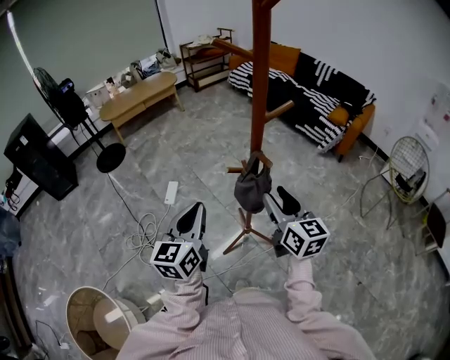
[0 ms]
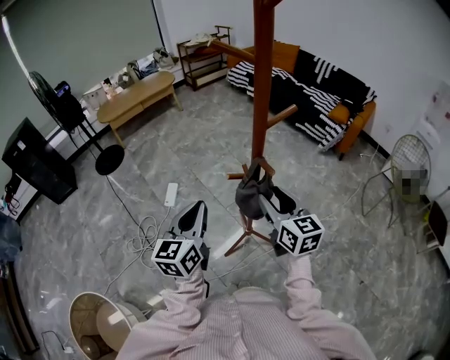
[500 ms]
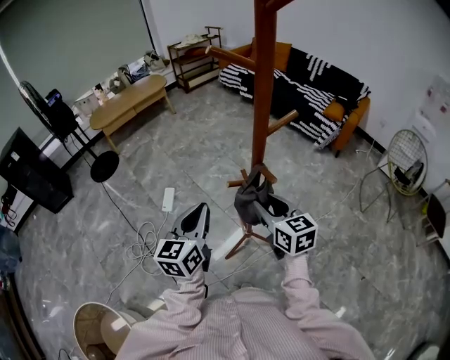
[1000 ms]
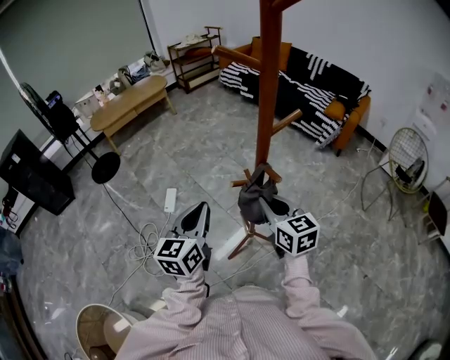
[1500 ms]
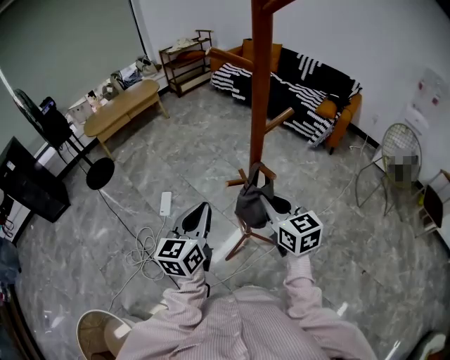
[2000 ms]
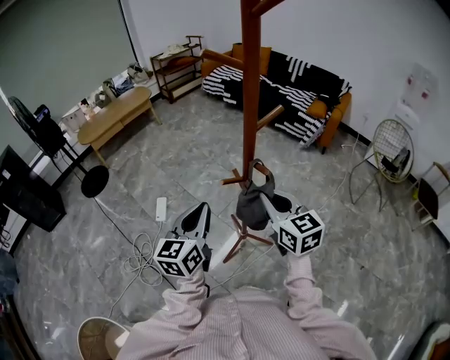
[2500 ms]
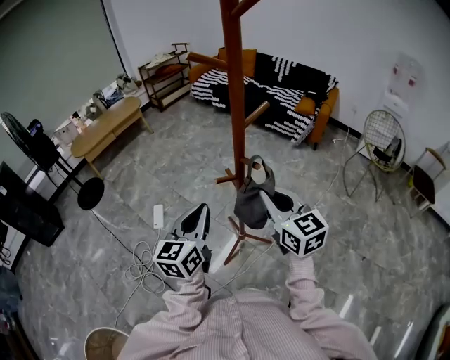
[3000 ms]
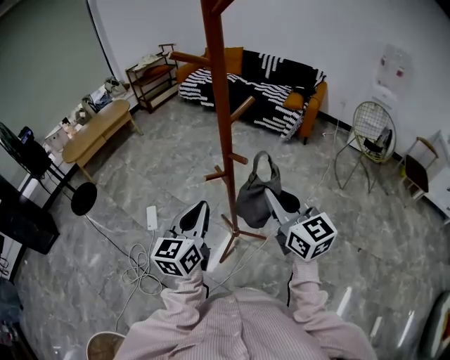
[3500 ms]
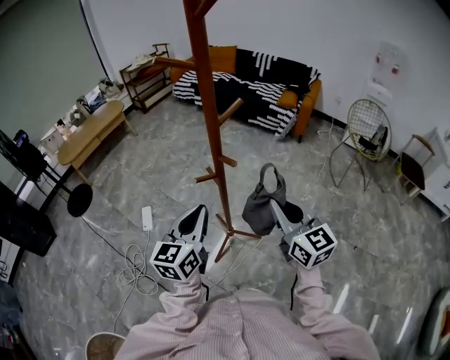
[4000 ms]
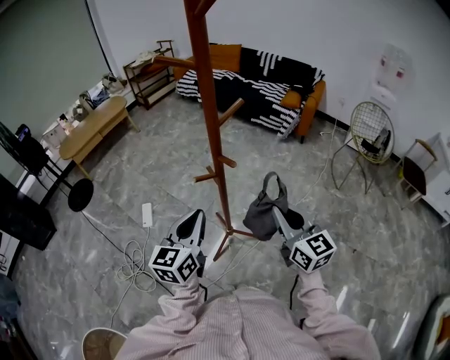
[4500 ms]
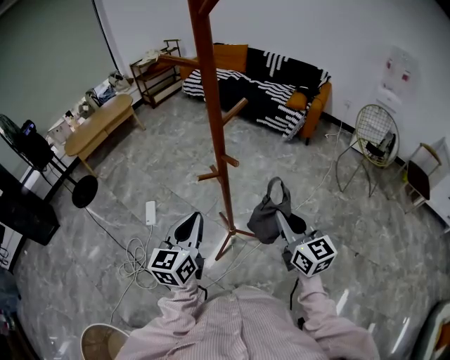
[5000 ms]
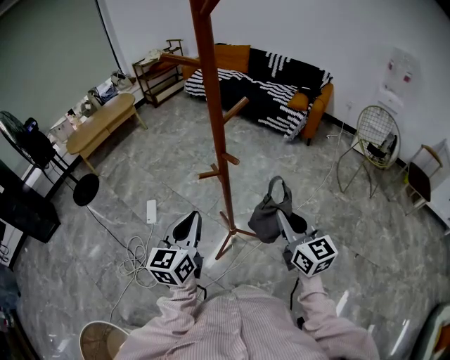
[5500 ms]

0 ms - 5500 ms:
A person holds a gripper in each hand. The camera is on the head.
0 ms - 2000 ms: The left gripper travels forward by roughly 5 cm. The right gripper changes place by roughly 5 cm, and closes up.
2000 ms - 3500 ms: The left gripper shifts by about 5 cm. The right gripper is displaced backward, upward and to the right by some 10 cm.
3500 ms - 5500 ms: The right gripper is displaced downward and to the right by about 10 cm.

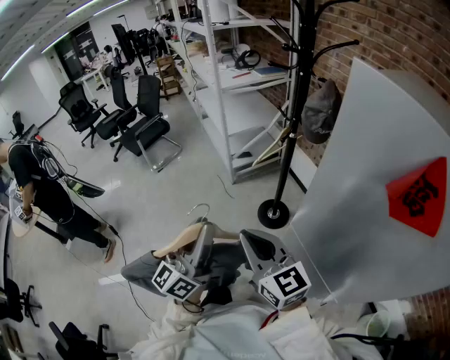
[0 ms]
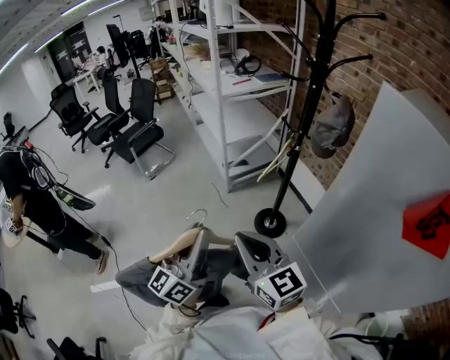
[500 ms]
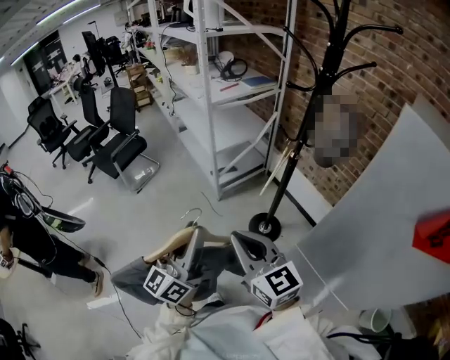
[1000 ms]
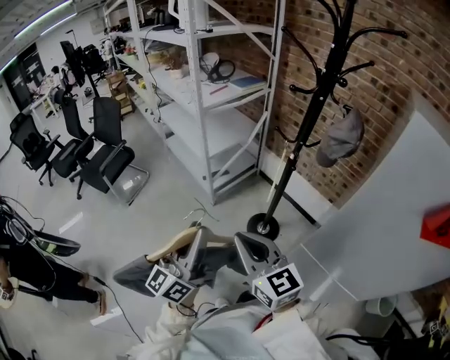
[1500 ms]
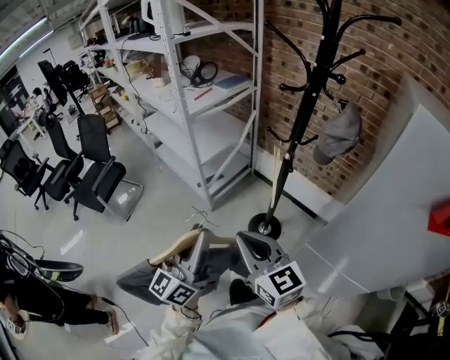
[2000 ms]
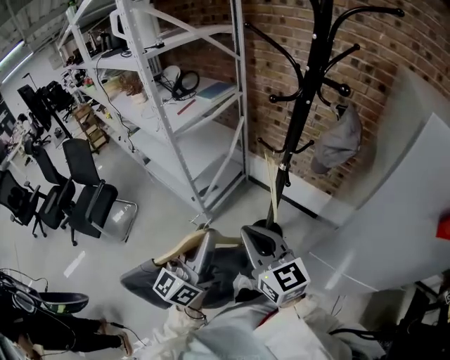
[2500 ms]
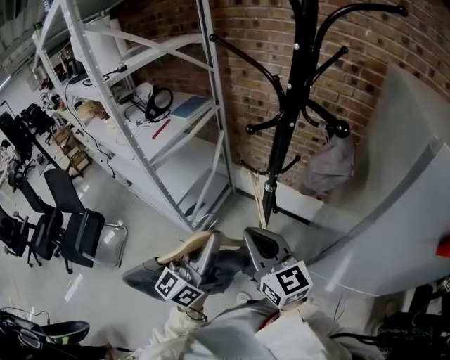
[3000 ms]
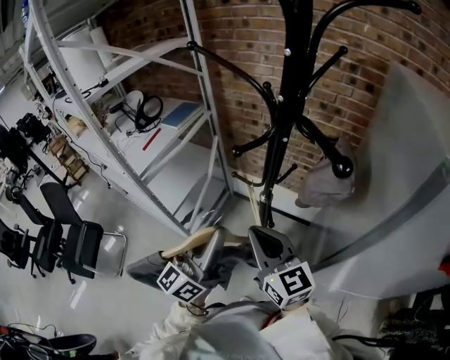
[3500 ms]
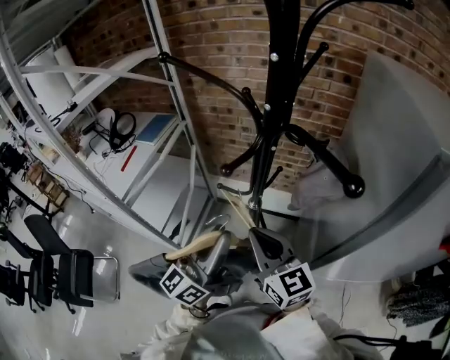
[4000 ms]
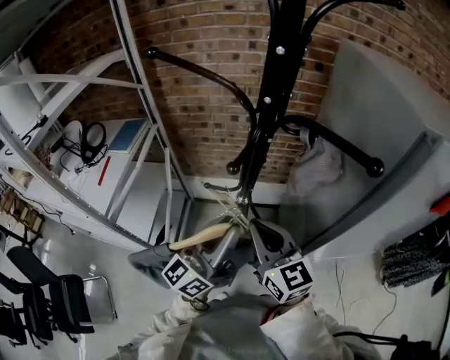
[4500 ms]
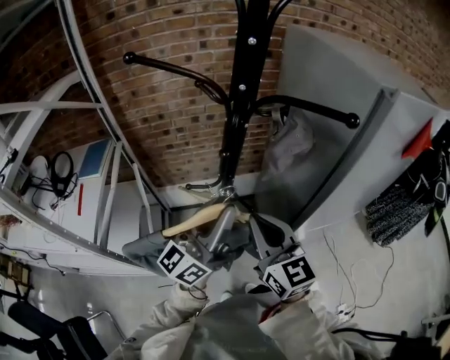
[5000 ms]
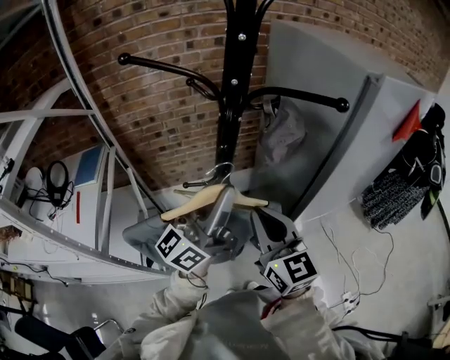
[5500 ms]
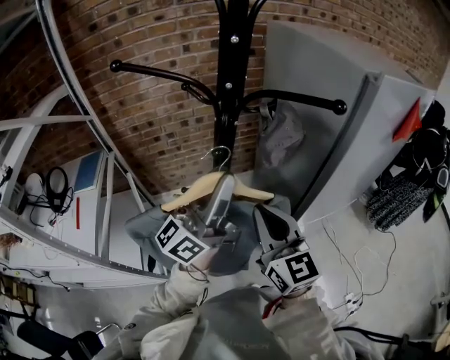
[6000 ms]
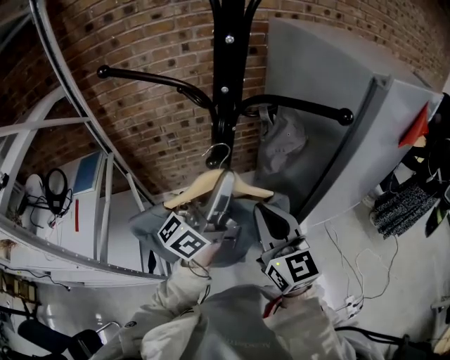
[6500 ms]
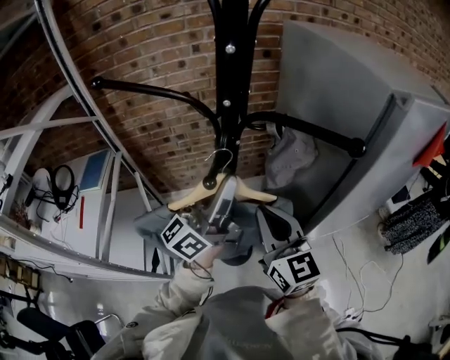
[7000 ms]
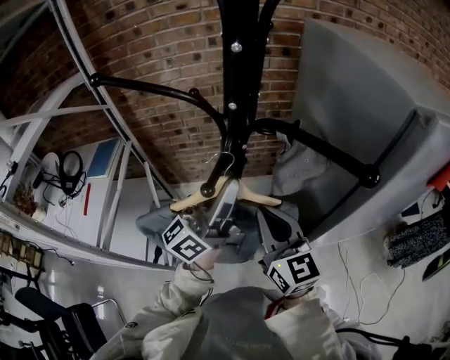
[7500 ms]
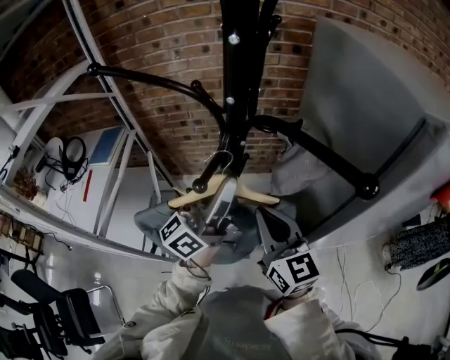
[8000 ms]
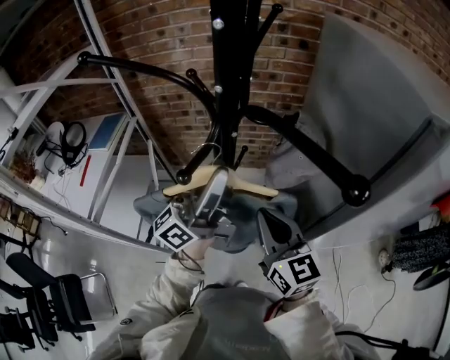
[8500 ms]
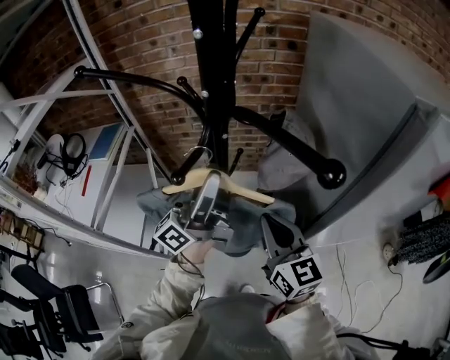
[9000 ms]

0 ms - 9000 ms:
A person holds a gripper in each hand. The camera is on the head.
0 ms - 2000 ms: Both grippers move forward and to the left, some 30 cm. The right gripper swivels roughly 20 degrees.
2000 ms - 4500 ms: The right gripper changes place by roughly 35 cm, and turns by approximately 40 degrees, while the left gripper moves approximately 35 cm, and swivels roughly 50 degrees.
4500 ms - 7000 ms: The right gripper ends up roughly 5 cm from where it was, and changes its angle by about 20 degrees; the left gripper travels forward and upward by approximately 10 cm, and swivels roughly 20 degrees.
7000 ms - 9000 ms: The right gripper goes some 5 cm downward.

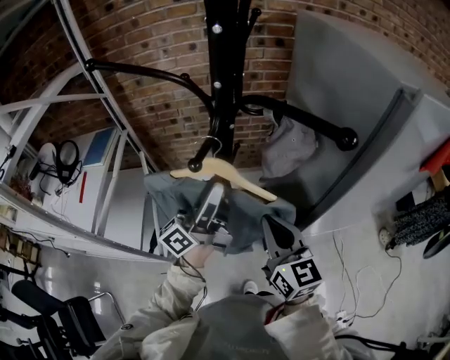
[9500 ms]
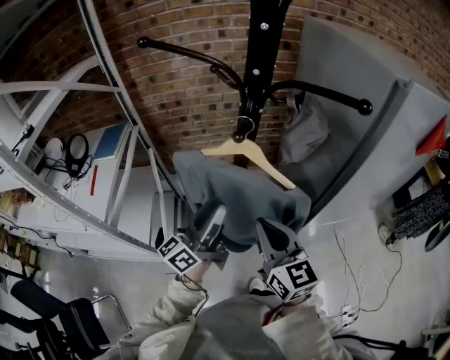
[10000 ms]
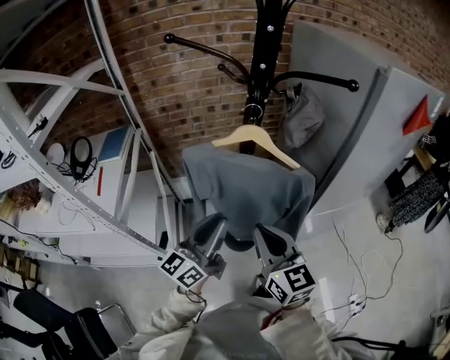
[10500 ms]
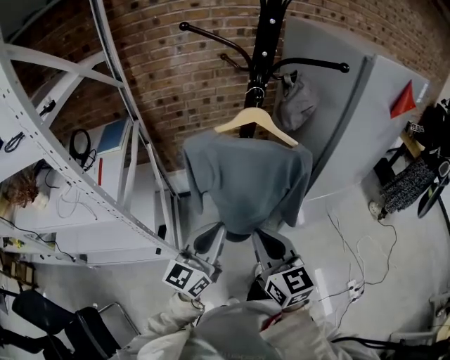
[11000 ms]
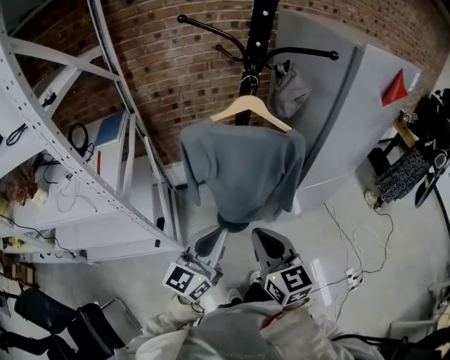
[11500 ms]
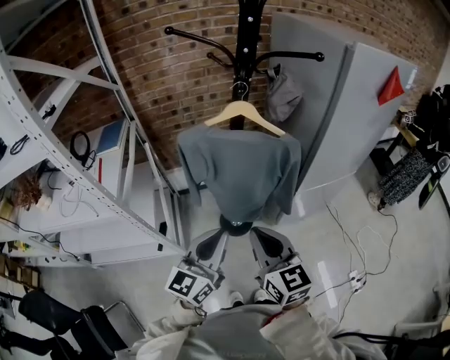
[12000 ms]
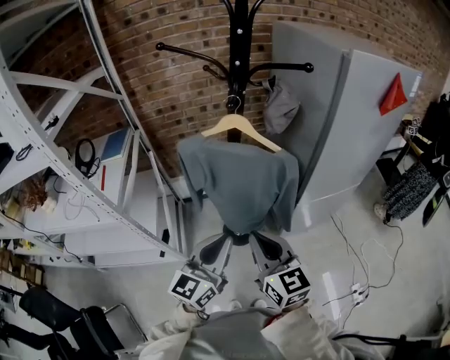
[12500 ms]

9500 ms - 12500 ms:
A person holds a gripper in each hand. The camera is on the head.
9500 ms - 11000 ms: The right gripper goes approximately 25 cm backward and to the left. The left gripper goes about 25 cm backward, changes its angle by about 40 degrees, and closes up.
11000 ms - 12500 ms: The right gripper ends up some 5 cm from where it was. The left gripper travels to the right by roughly 5 cm.

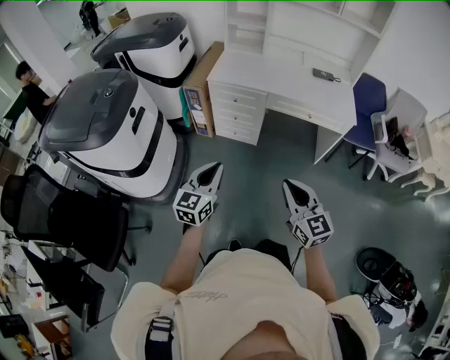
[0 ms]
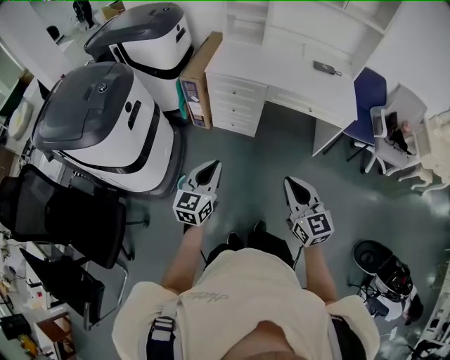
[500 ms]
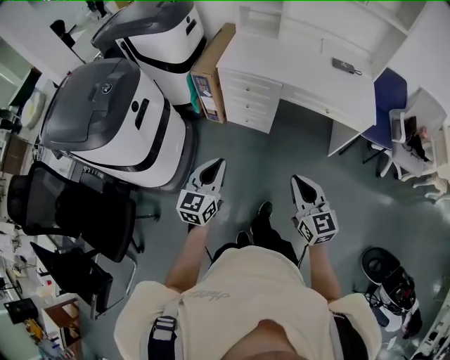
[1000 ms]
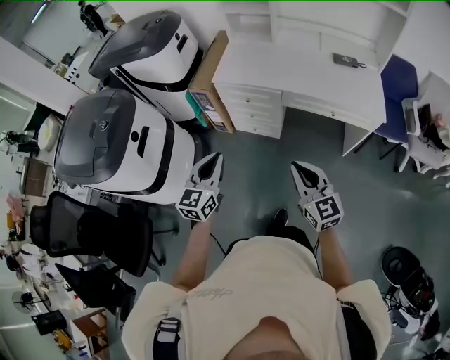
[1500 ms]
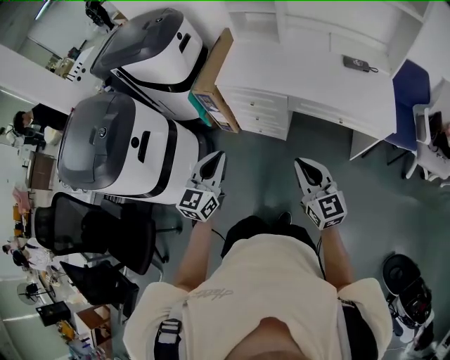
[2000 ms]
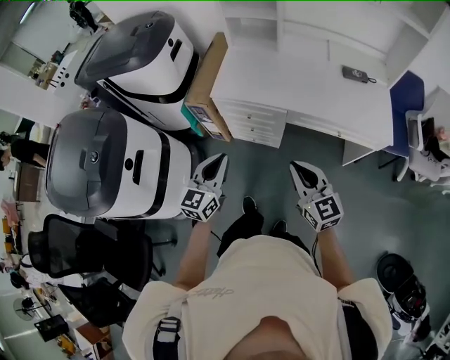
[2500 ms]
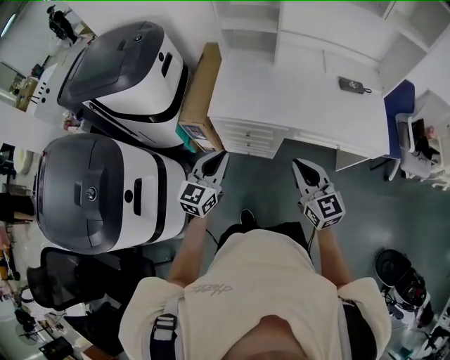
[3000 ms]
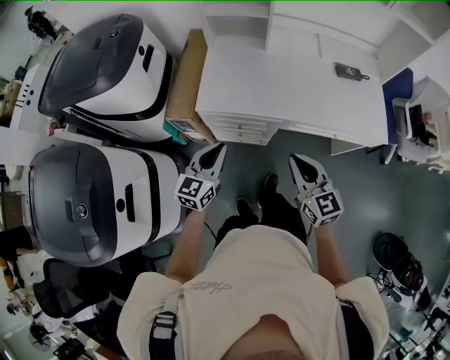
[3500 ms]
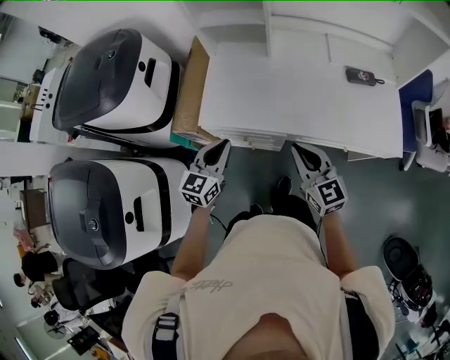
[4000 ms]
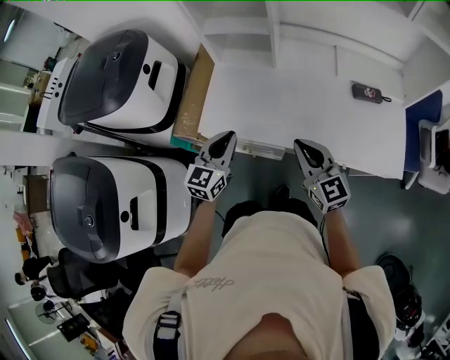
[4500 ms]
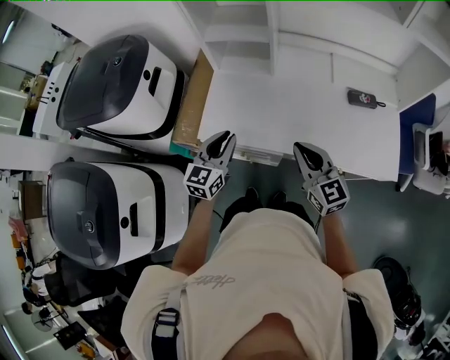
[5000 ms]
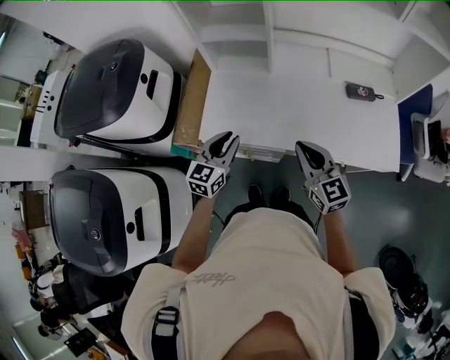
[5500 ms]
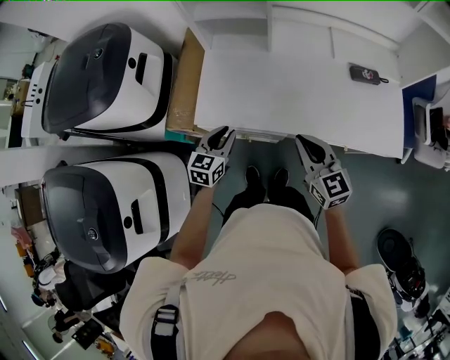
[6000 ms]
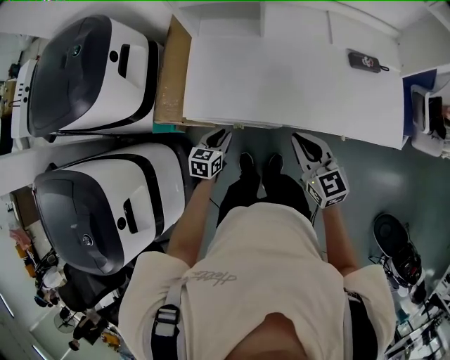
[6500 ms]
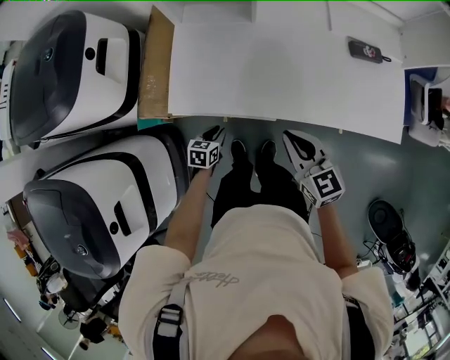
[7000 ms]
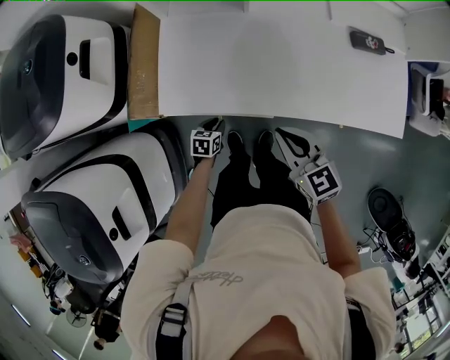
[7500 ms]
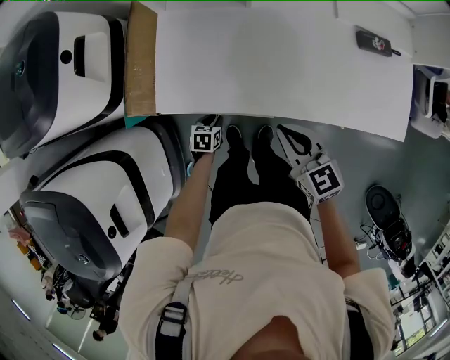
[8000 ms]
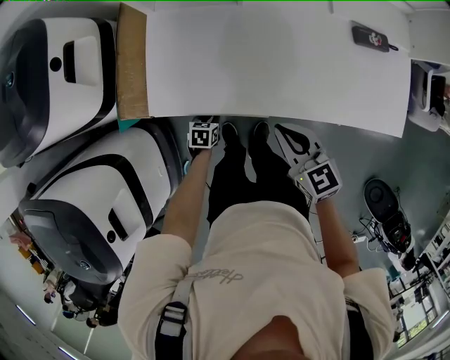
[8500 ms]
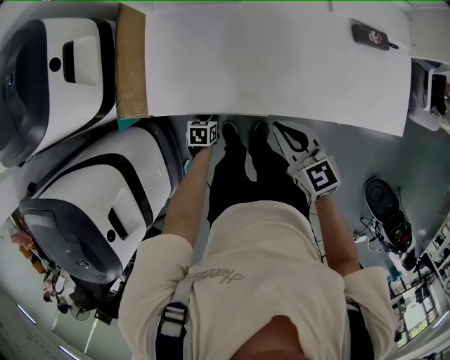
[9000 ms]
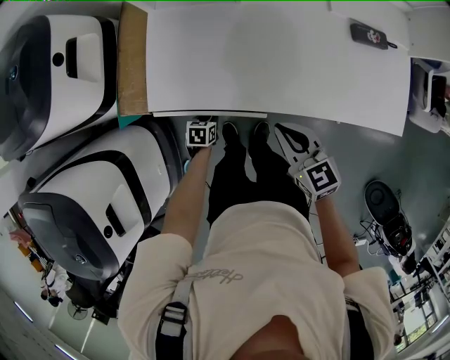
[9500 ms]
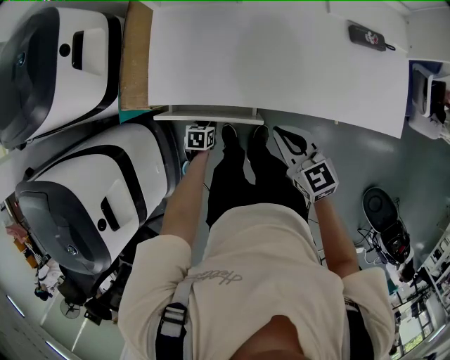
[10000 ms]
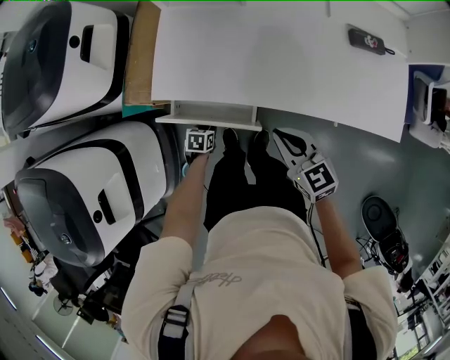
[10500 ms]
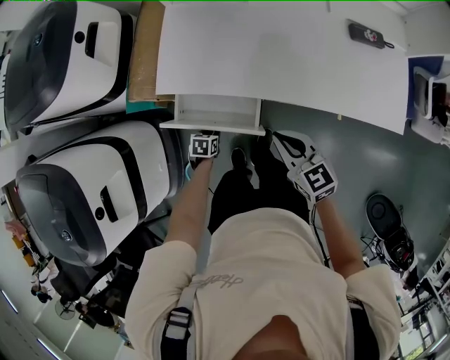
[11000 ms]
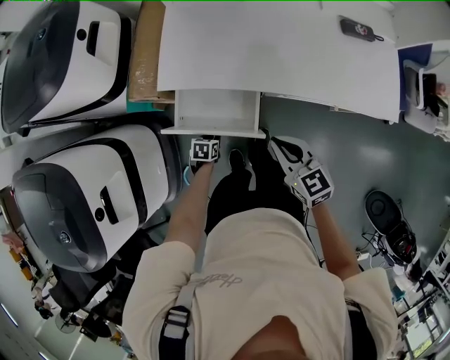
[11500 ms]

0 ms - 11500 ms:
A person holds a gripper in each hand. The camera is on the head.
0 ms - 2000 ms: The grippers both shift forward by some 25 cm.
2000 ms - 4000 ms: Both grippers travel together forward, roughly 35 cm.
4000 ms - 6000 ms: The left gripper shifts roughly 10 cm downward and forward; the right gripper shifts roughly 5 cm forward.
6000 ms - 7500 ms: The left gripper is displaced downward by some 30 cm, and swivels about 40 degrees. Meanwhile the right gripper travels downward by approximately 10 cm.
7500 ms - 9500 ms: There are only small adjustments of the grippers.
9500 ms - 11500 ms: Both grippers move backward, roughly 15 cm.
